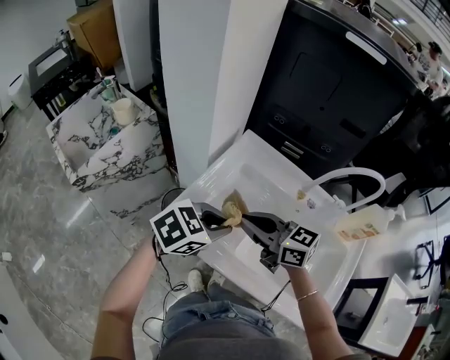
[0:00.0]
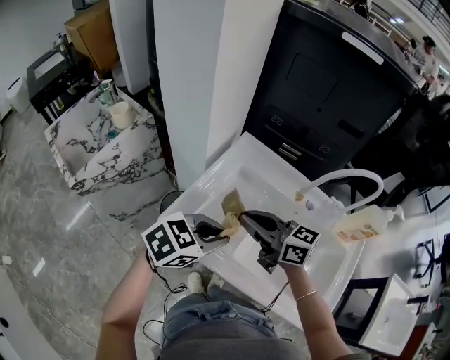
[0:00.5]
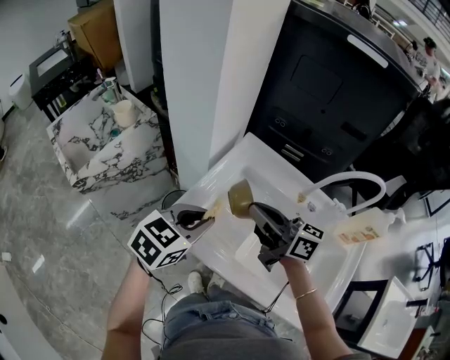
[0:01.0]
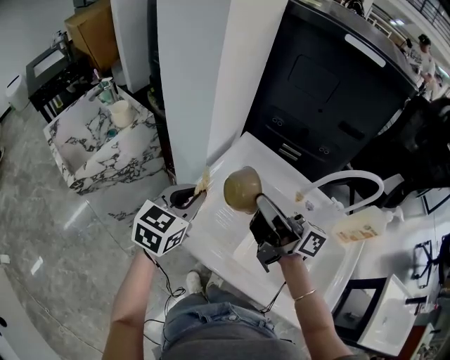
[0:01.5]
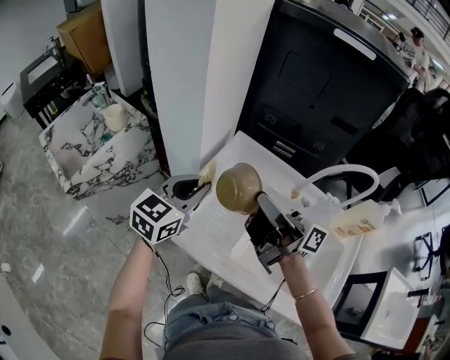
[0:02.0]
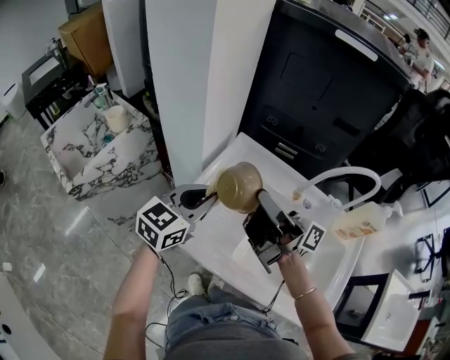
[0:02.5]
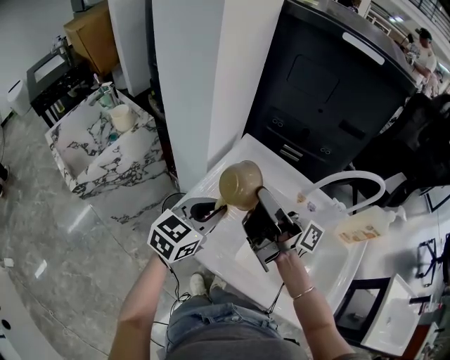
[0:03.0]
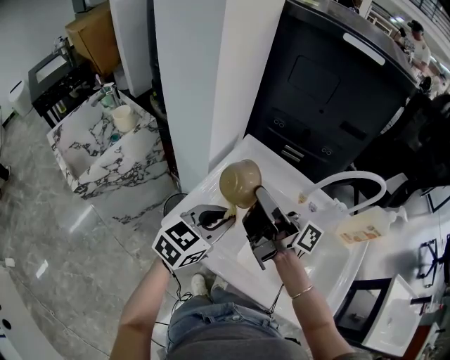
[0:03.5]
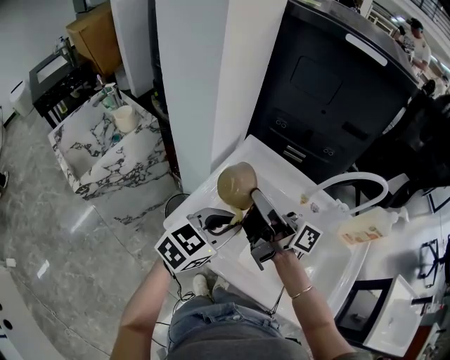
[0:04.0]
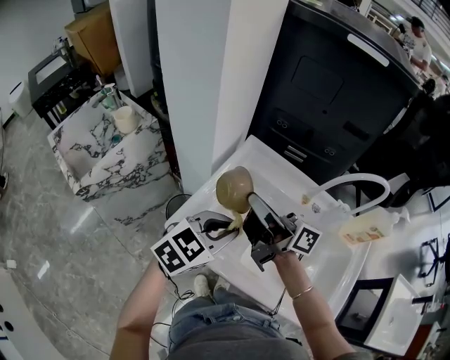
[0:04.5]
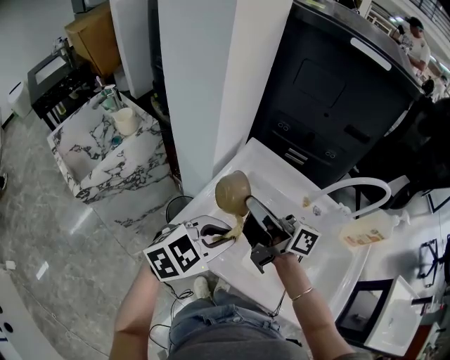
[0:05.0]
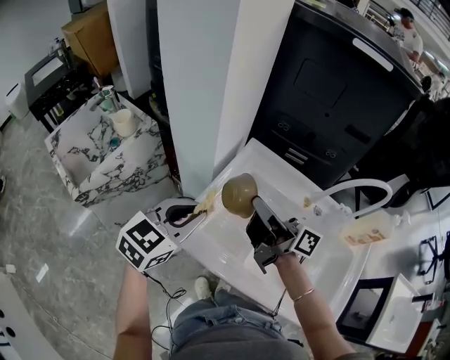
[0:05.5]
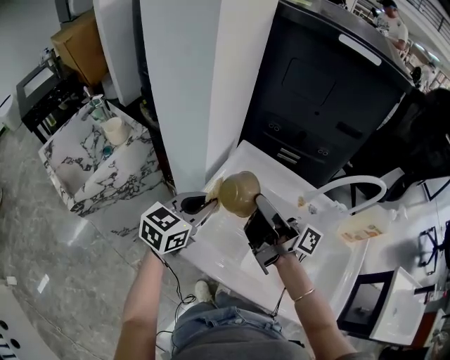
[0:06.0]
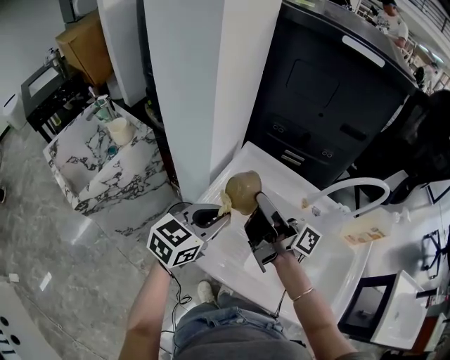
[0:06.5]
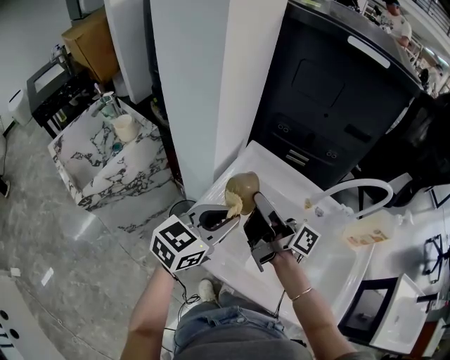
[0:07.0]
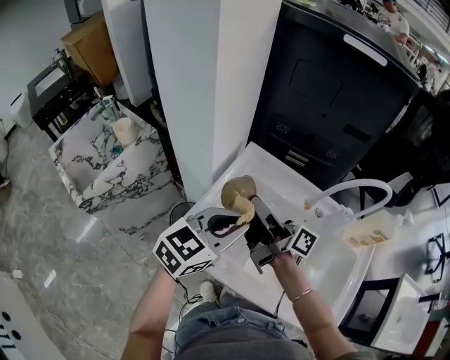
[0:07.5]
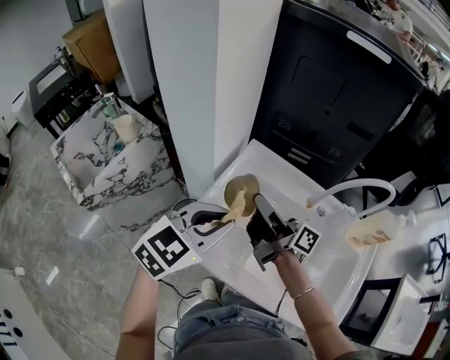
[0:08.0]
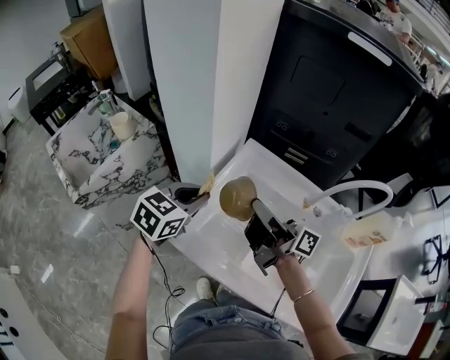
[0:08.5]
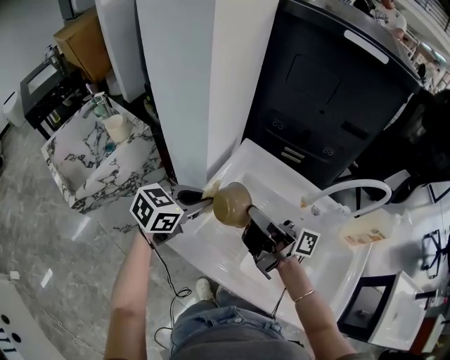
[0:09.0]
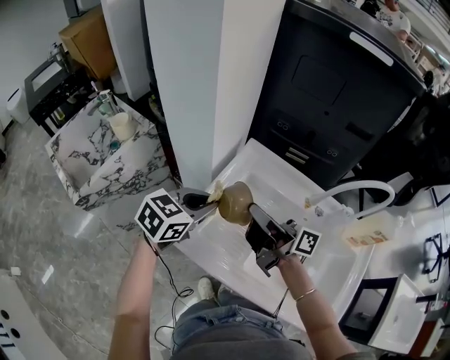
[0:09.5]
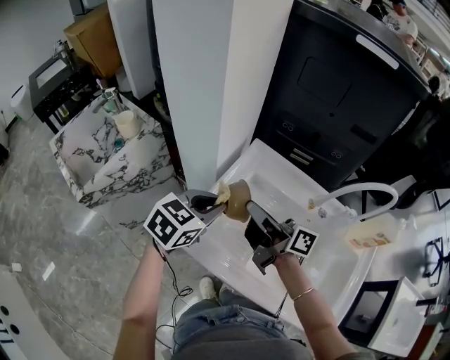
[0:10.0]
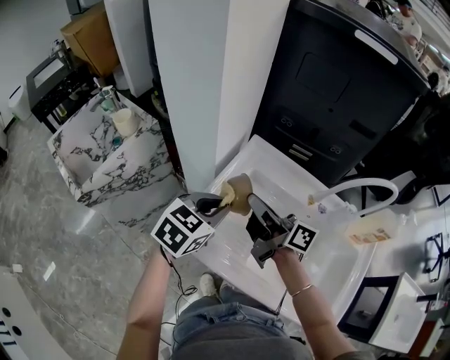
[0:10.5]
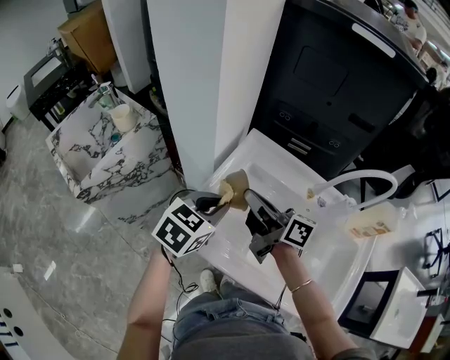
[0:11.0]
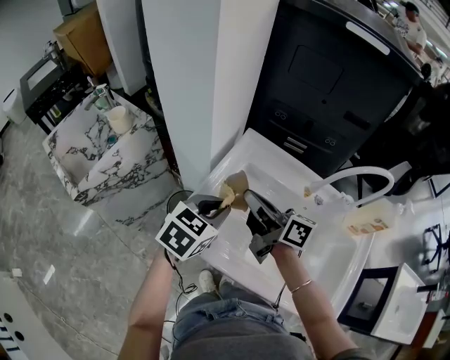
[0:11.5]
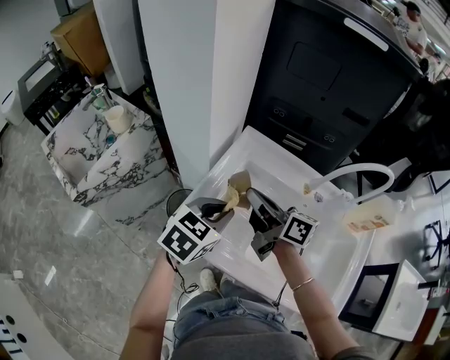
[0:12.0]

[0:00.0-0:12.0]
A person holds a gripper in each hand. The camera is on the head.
0:00.0 to 0:02.0: The left gripper shifts by about 15 cm, and swivels roughly 40 degrees. The right gripper moves upward, some 10 cm, and angles its fingers upward, by some 40 degrees.
0:02.0 to 0:04.0: The left gripper travels backward and to the right by some 10 cm.
0:04.0 to 0:06.0: The left gripper moves forward and to the left, approximately 10 cm.
0:06.0 to 0:08.0: The left gripper moves upward and backward, approximately 10 cm, and rotates approximately 20 degrees.
0:08.0 to 0:10.0: The left gripper heads downward and forward, covering roughly 10 cm.
0:10.0 to 0:12.0: The left gripper changes place by about 5 cm.

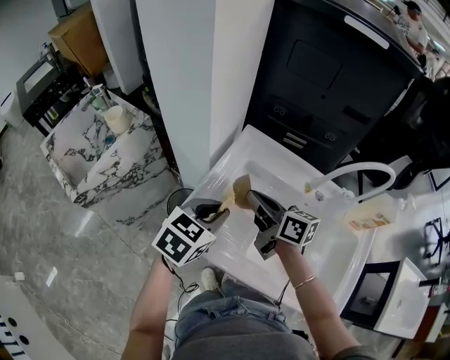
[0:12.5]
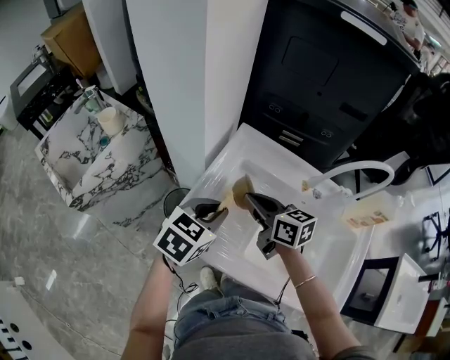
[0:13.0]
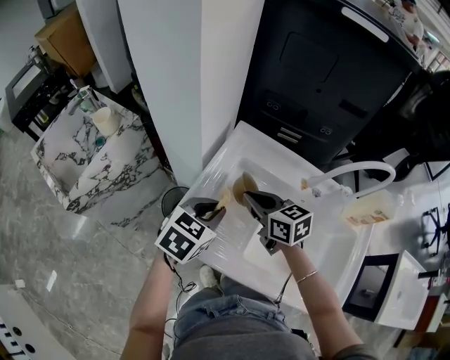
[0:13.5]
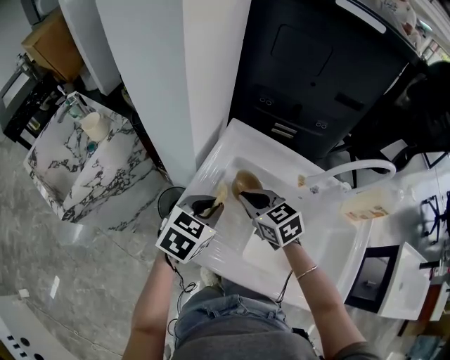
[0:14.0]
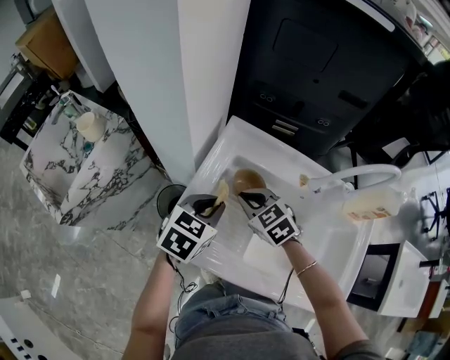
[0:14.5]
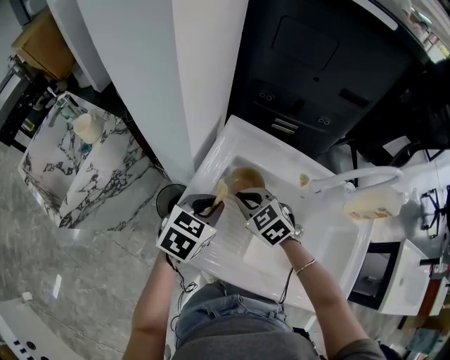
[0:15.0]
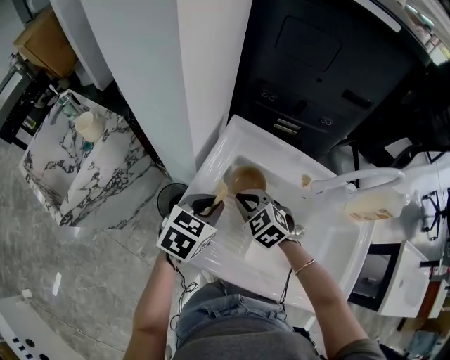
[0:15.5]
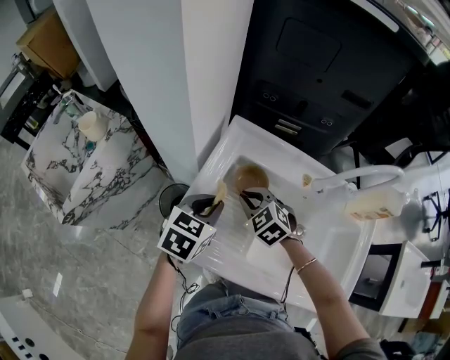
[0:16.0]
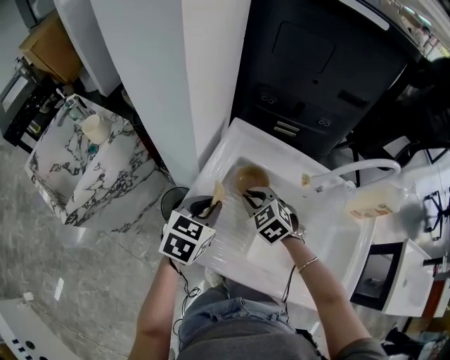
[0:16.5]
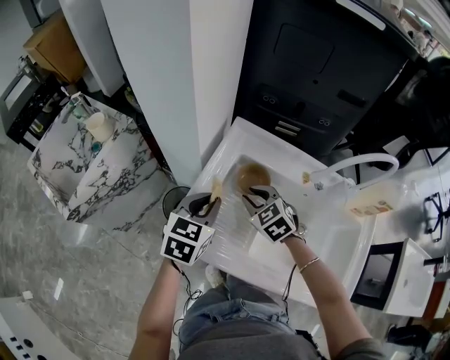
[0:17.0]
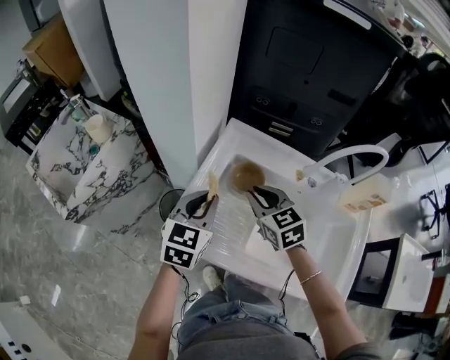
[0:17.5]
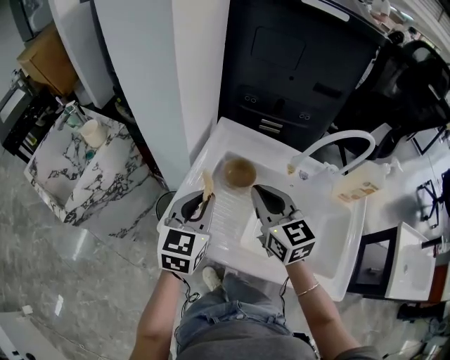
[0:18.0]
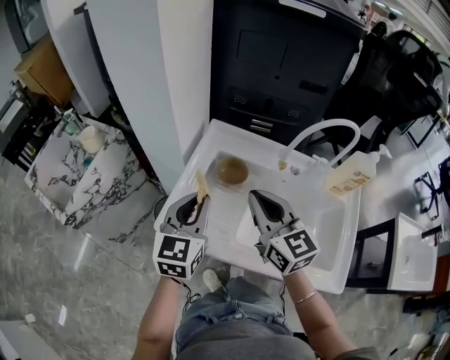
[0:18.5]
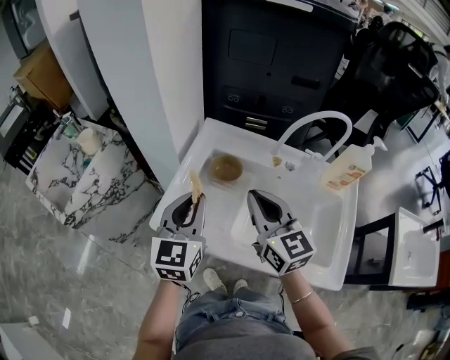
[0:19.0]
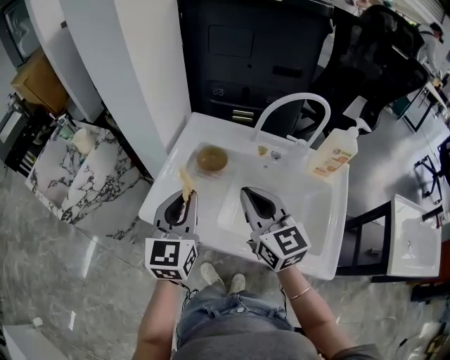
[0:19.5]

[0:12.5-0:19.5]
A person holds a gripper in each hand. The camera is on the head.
0:12.5 to 0:14.5: The right gripper is displaced downward by some 10 cm, and tips its fingers downward by some 30 degrees; the left gripper shifts about 5 cm forward.
0:14.5 to 0:16.0: There are only small adjustments of the grippers.
0:16.0 to 0:17.5: The left gripper moves some 5 cm. Meanwhile the right gripper is displaced upward by some 10 cm, and rotates about 30 degrees.
0:17.5 to 0:19.5: Both grippers travel together backward, upward and to the right, roughly 15 cm. The right gripper changes its angle by approximately 30 degrees.

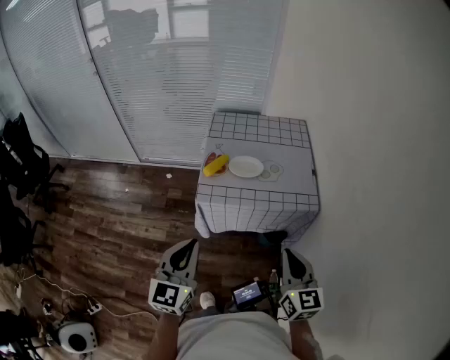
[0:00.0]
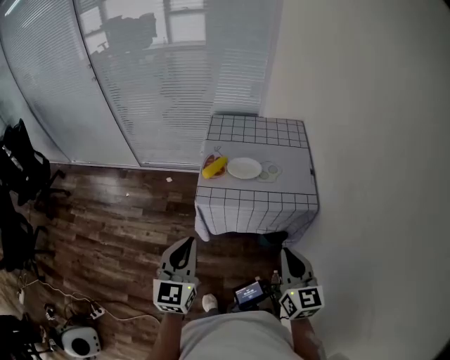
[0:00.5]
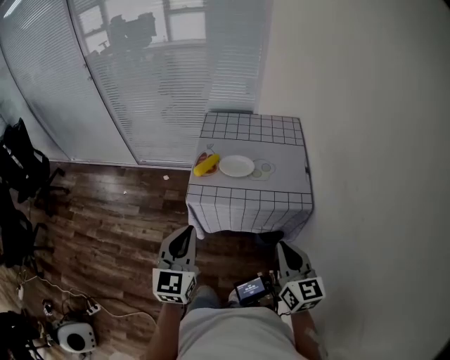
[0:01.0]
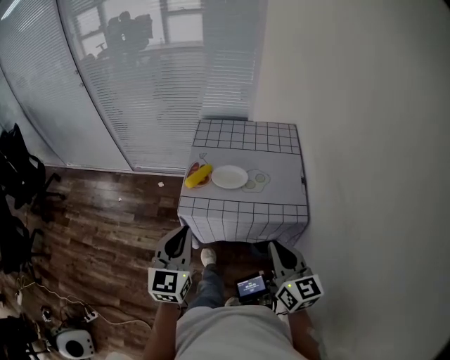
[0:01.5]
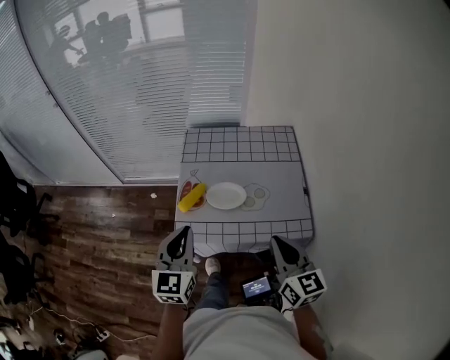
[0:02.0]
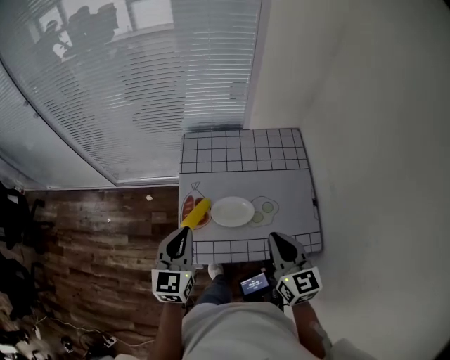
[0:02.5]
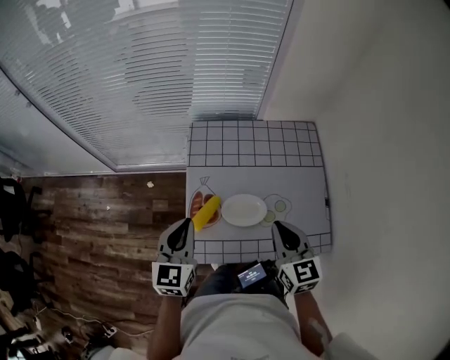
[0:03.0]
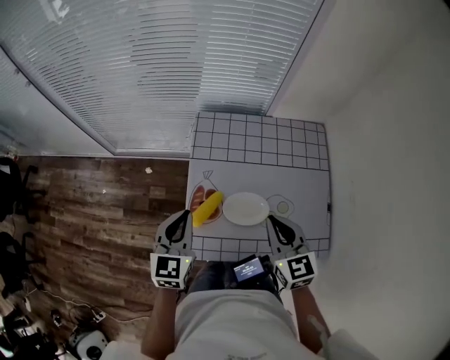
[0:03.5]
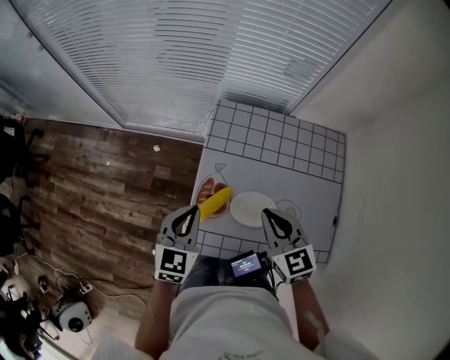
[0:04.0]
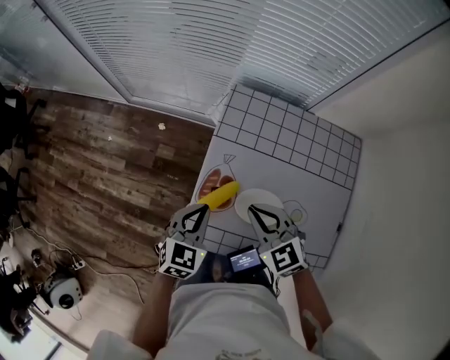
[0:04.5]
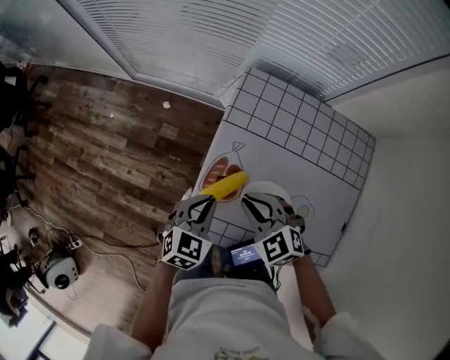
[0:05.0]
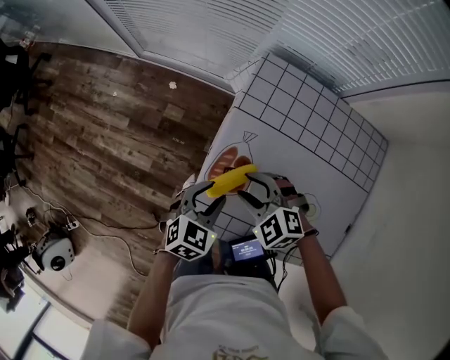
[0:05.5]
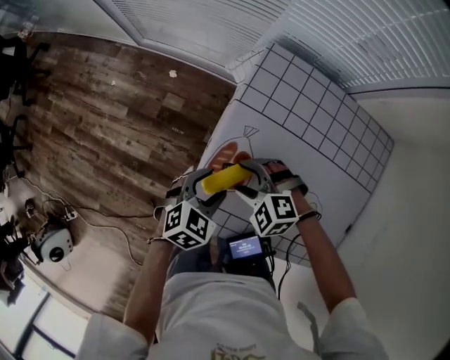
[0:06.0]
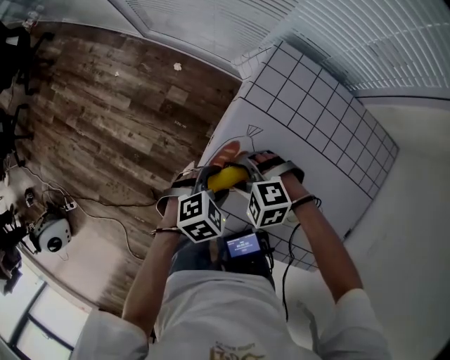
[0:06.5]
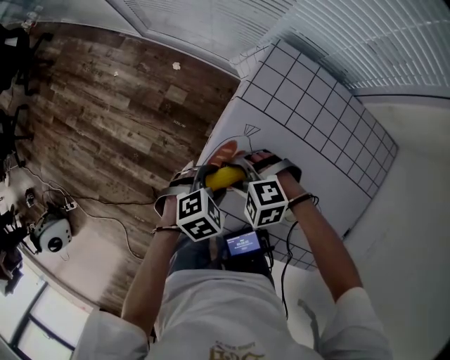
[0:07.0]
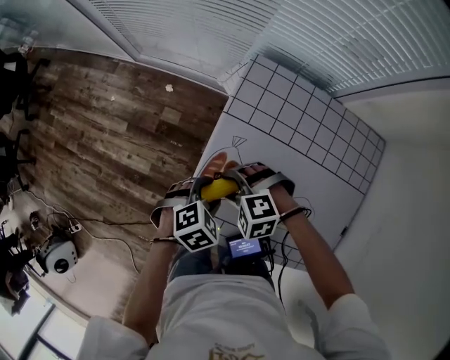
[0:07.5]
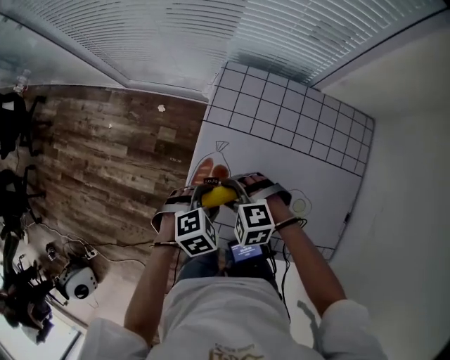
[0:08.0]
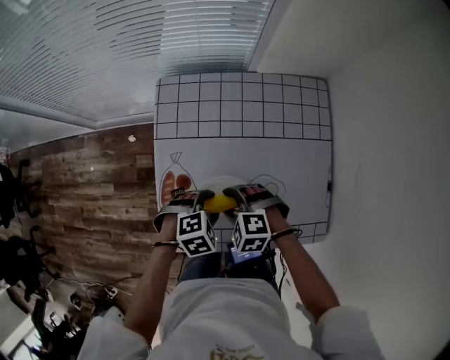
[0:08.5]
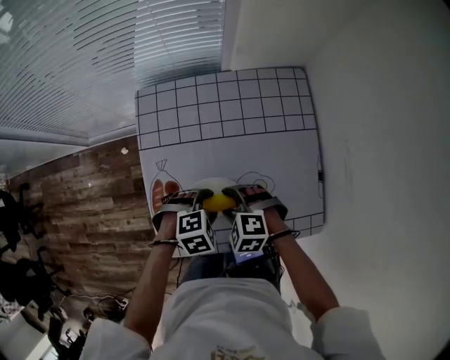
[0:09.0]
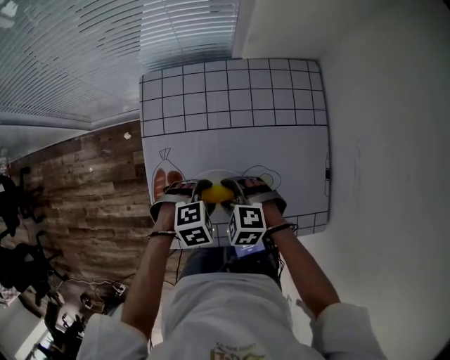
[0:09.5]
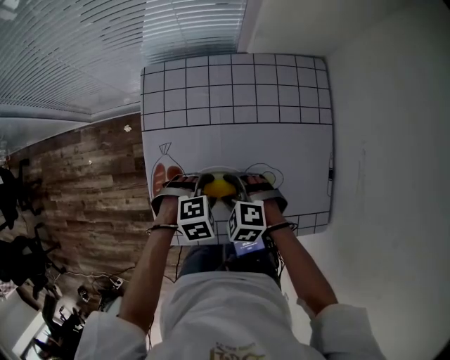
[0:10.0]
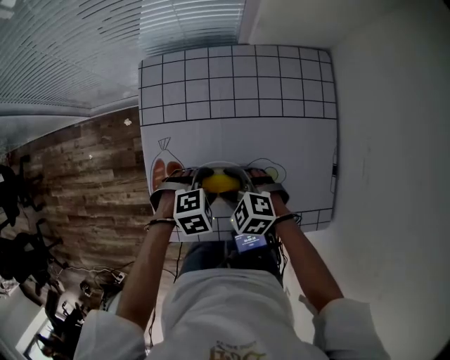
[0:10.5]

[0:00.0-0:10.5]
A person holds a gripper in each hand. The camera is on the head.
0:00.0 to 0:02.0: The grippers both shift forward by roughly 20 cm.
0:02.0 to 0:04.0: The right gripper shifts roughly 25 cm forward and to the left, and changes its angle by roughly 30 degrees. Meanwhile the left gripper heads forward and downward, covering approximately 20 cm.
0:04.0 to 0:06.5: Both grippers travel together downward, about 20 cm. The left gripper points its fingers some 40 degrees further downward, and opens its fingers. The right gripper tips its fingers downward by roughly 40 degrees, and opens up.
0:06.5 to 0:08.5: The left gripper changes place by about 10 cm, and rotates approximately 40 degrees, while the right gripper shifts by some 15 cm, and changes its angle by roughly 40 degrees.
0:08.5 to 0:10.5: There are only small adjustments of the grippers.
